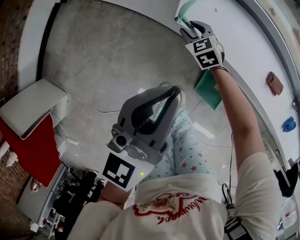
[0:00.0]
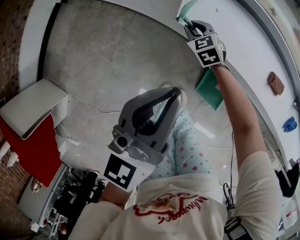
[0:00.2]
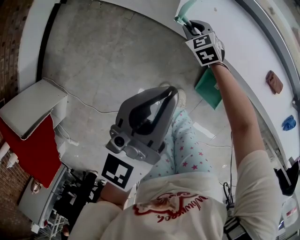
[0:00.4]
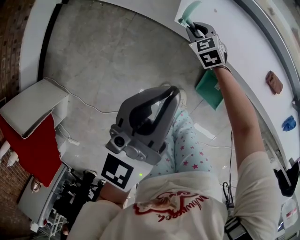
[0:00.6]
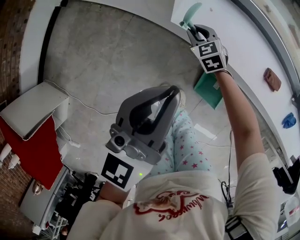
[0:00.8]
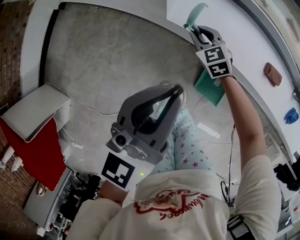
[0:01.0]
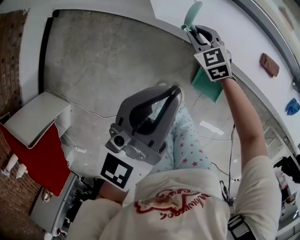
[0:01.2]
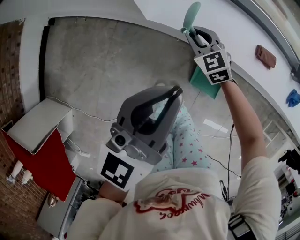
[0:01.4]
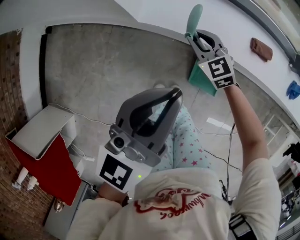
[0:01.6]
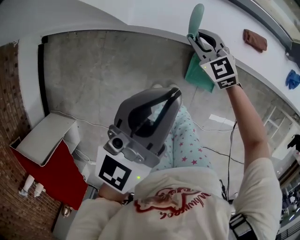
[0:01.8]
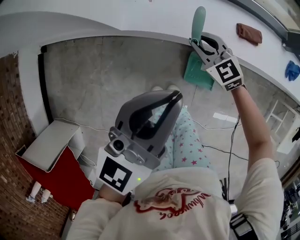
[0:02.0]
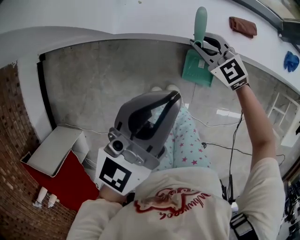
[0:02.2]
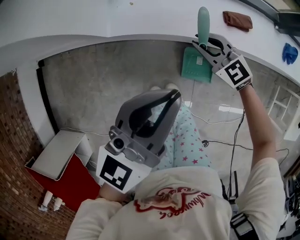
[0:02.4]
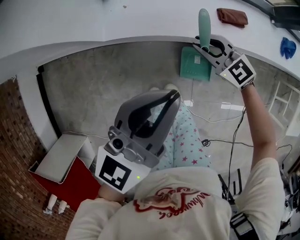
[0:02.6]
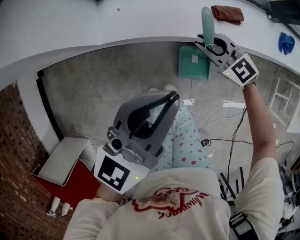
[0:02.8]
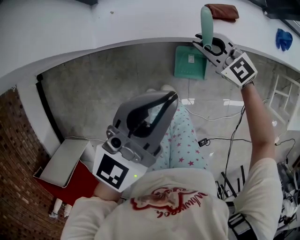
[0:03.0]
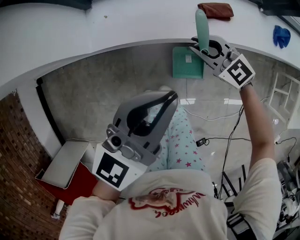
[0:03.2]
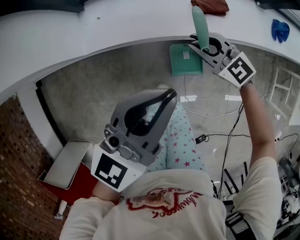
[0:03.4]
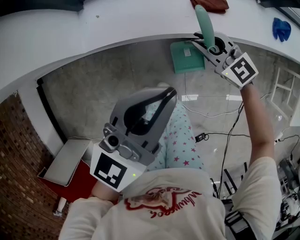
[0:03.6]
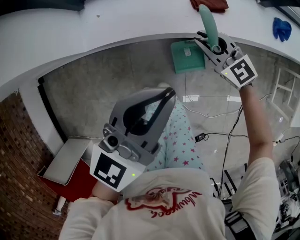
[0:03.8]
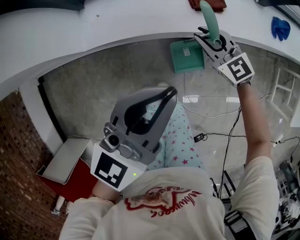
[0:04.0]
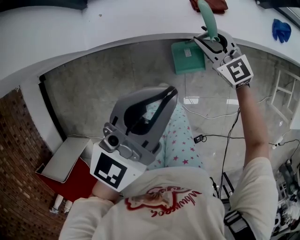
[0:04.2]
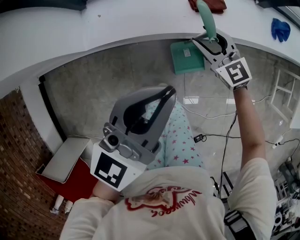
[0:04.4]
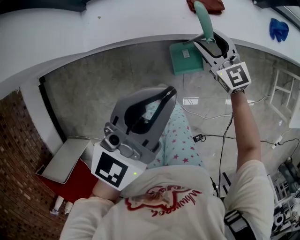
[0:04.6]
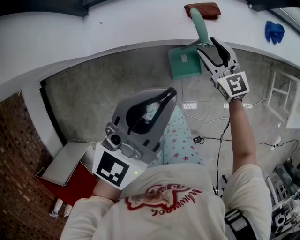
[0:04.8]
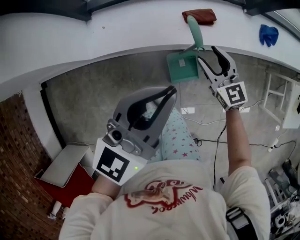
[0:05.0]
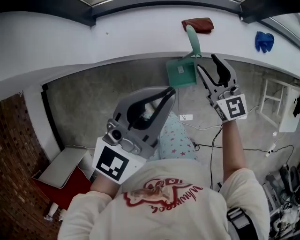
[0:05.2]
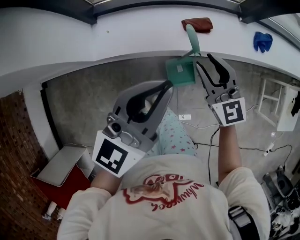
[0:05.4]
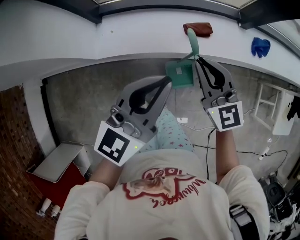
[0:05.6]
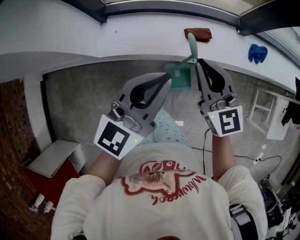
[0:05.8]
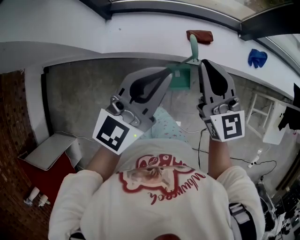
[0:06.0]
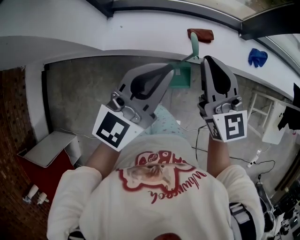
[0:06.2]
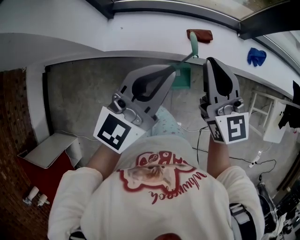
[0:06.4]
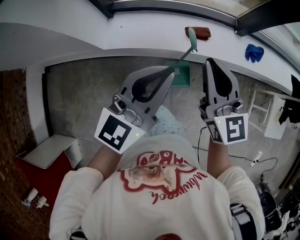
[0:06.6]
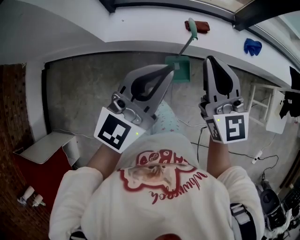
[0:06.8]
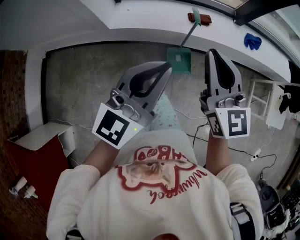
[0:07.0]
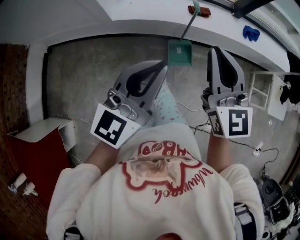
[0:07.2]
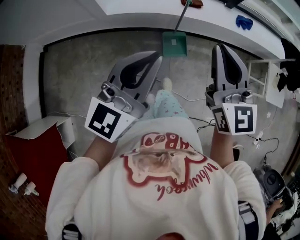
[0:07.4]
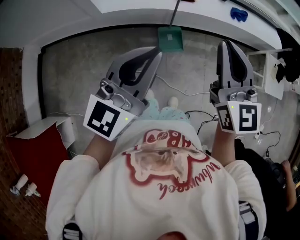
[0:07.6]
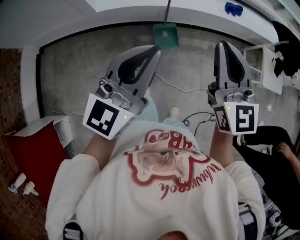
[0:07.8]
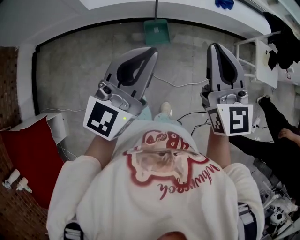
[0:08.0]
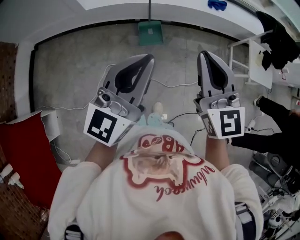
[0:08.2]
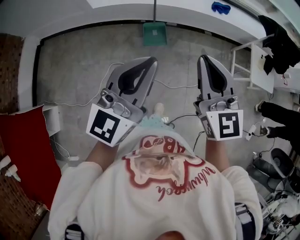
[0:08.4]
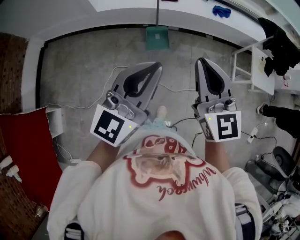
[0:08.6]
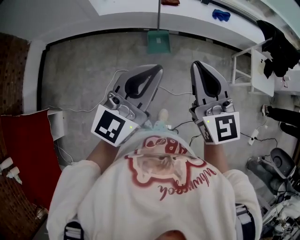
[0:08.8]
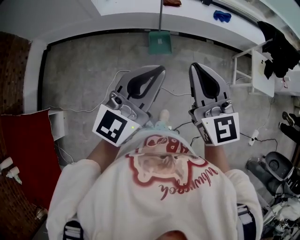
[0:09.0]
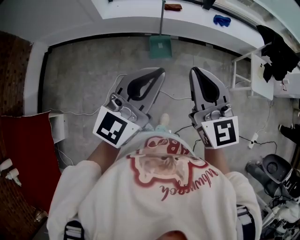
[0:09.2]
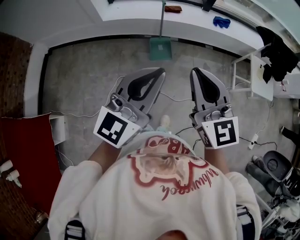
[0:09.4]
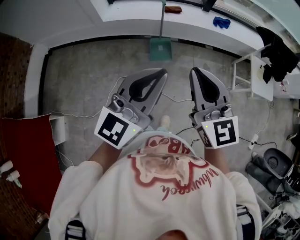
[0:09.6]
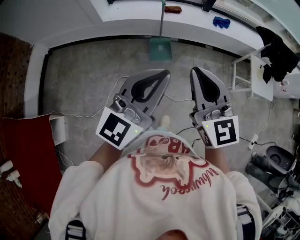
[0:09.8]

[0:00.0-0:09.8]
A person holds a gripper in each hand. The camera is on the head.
0:00.0 to 0:01.4: The right gripper travels to the right, upward and backward by some 15 cm, and closes; the left gripper moves to the right, some 10 cm.
0:01.4 to 0:02.8: Both grippers travel together to the right, some 20 cm. The left gripper turns by approximately 30 degrees.
0:02.8 to 0:04.2: Both grippers move to the right, some 10 cm.
0:04.2 to 0:05.6: The left gripper is displaced upward by some 10 cm. The right gripper travels upward by roughly 25 cm, rotates roughly 20 degrees, and closes up.
0:05.6 to 0:07.0: The right gripper moves backward and upward, some 25 cm. Meanwhile the left gripper heads backward, covering some 20 cm.
0:07.0 to 0:08.4: The two grippers go about 40 cm backward and to the right.
0:08.4 to 0:09.8: The right gripper moves to the left, some 10 cm, while the left gripper changes place by approximately 5 cm.

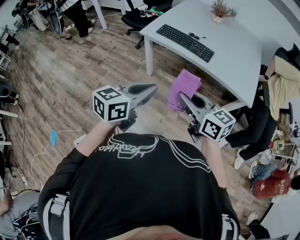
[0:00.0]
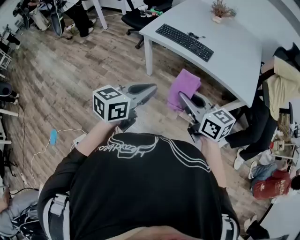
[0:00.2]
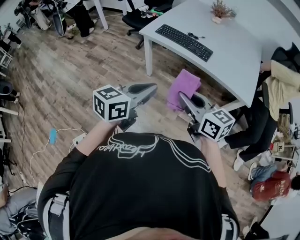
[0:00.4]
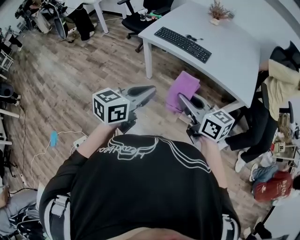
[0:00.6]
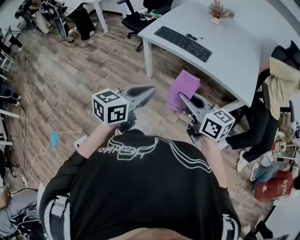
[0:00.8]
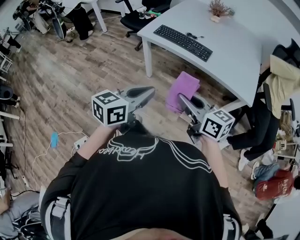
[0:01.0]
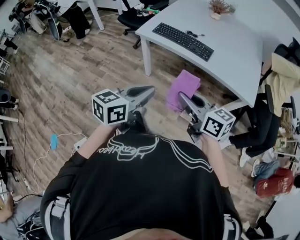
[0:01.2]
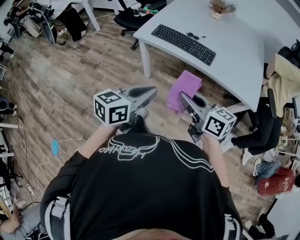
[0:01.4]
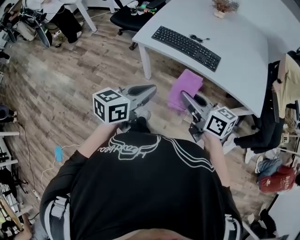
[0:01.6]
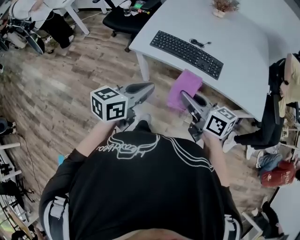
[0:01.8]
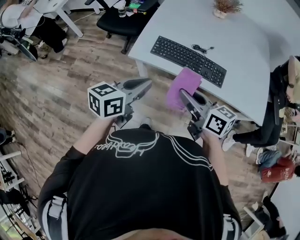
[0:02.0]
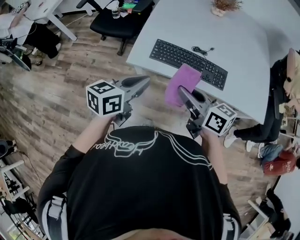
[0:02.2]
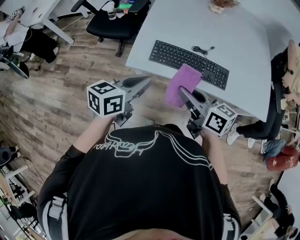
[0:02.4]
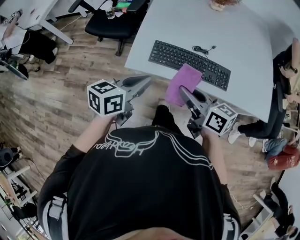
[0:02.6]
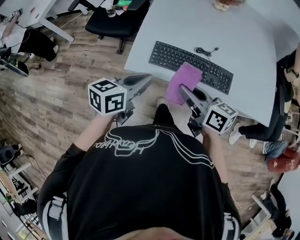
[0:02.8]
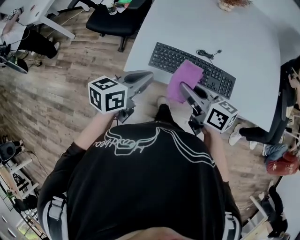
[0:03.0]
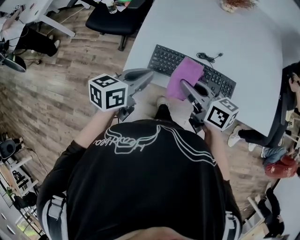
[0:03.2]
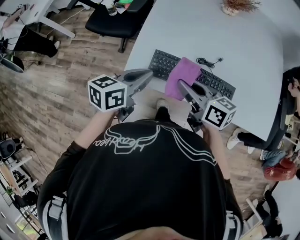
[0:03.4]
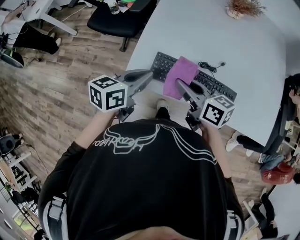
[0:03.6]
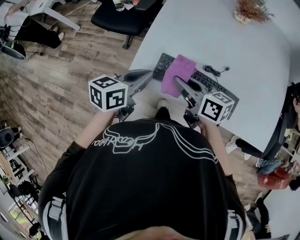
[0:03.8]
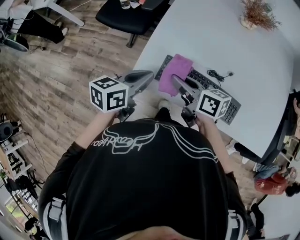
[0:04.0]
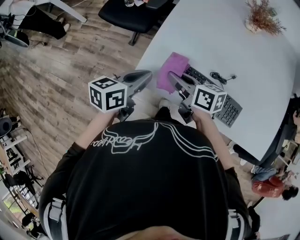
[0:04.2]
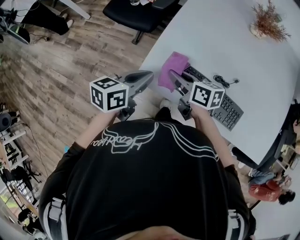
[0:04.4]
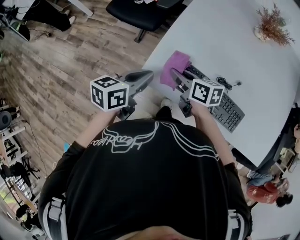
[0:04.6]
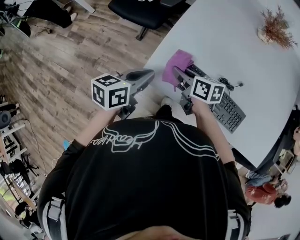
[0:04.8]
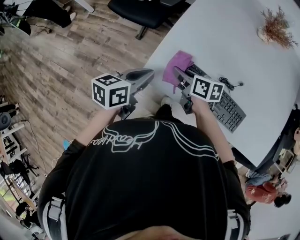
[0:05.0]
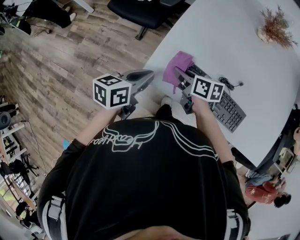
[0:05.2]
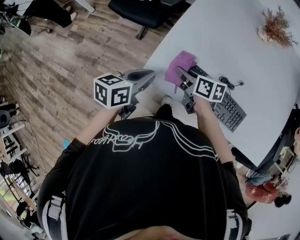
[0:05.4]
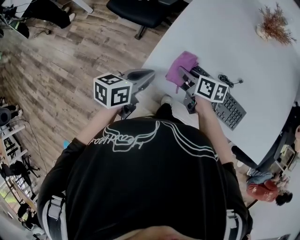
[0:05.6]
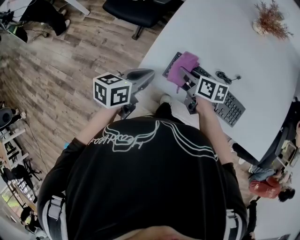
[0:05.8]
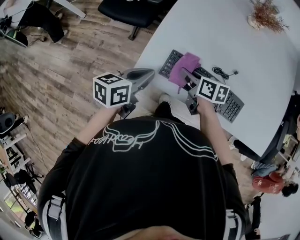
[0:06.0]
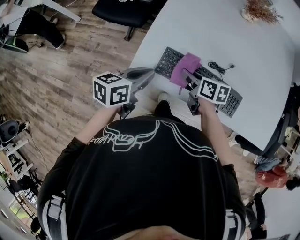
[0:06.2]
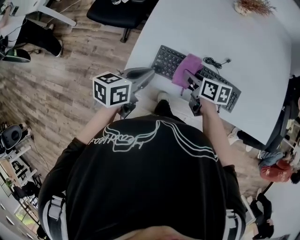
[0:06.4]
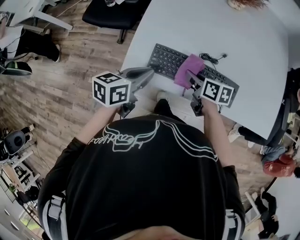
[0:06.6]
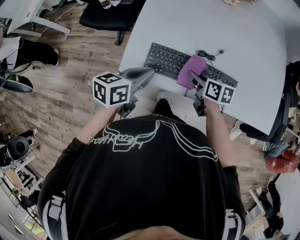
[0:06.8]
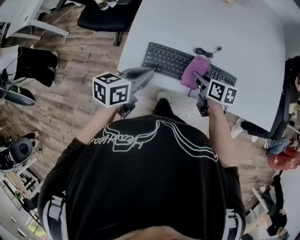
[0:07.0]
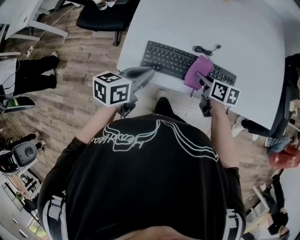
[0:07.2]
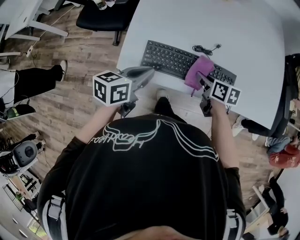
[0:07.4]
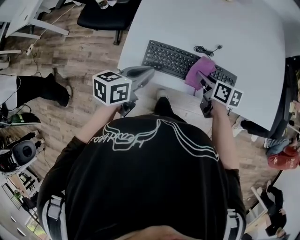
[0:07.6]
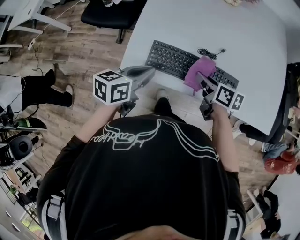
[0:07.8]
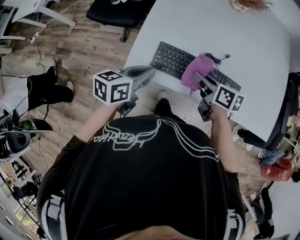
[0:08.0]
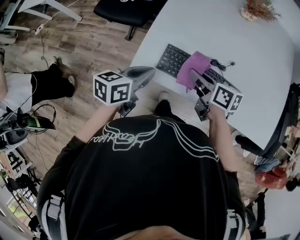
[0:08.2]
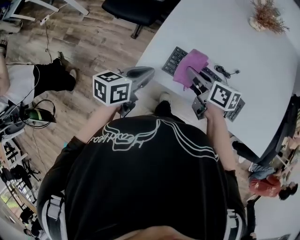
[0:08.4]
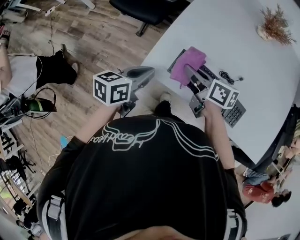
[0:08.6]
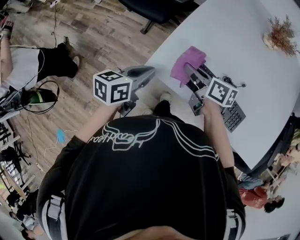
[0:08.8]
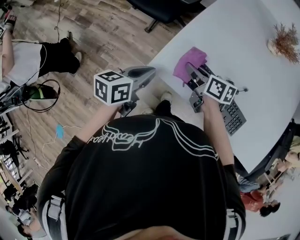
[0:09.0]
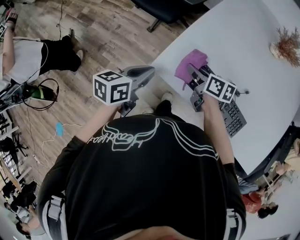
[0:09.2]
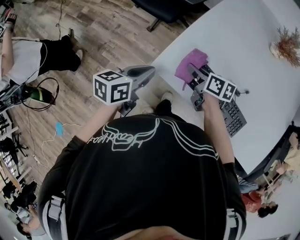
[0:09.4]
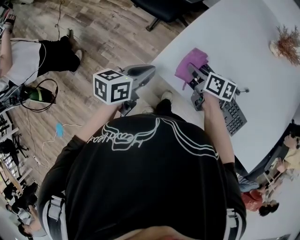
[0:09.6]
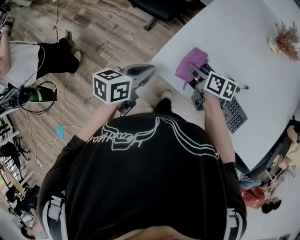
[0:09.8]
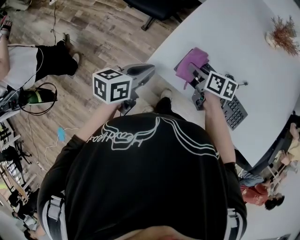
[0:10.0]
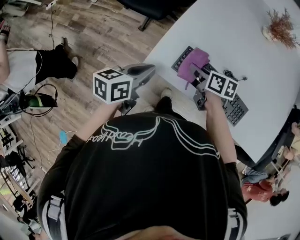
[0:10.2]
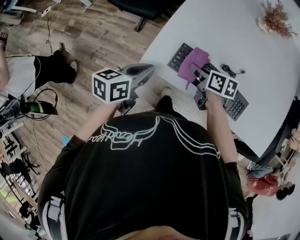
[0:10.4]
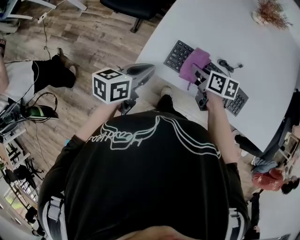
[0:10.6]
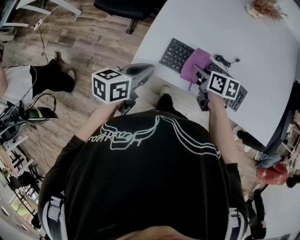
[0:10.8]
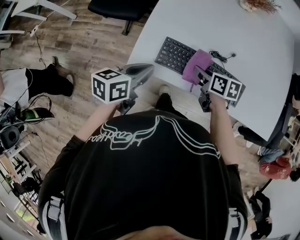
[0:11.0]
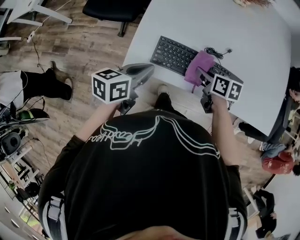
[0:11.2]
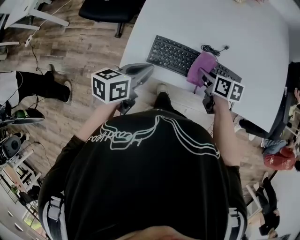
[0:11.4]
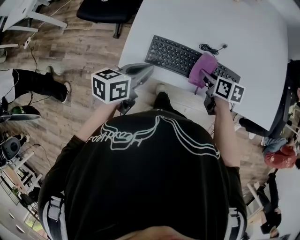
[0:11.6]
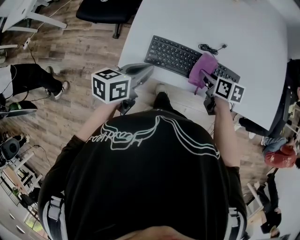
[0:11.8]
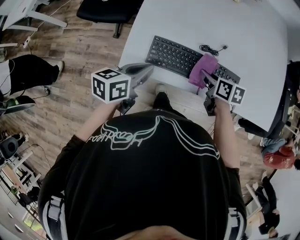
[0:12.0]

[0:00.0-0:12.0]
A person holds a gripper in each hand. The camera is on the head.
0:00.0 to 0:01.6: The grippers both shift forward by approximately 15 cm.
0:01.6 to 0:03.0: The grippers both shift forward by roughly 30 cm.
0:03.0 to 0:04.4: The right gripper shifts about 20 cm forward, to the left and downward; the left gripper heads forward, covering roughly 10 cm.
0:04.4 to 0:06.0: The right gripper shifts about 10 cm to the right and downward.
0:06.0 to 0:07.6: The right gripper goes some 15 cm to the right. The left gripper is displaced to the right by about 5 cm.
0:07.6 to 0:09.0: The right gripper travels to the left and forward by approximately 20 cm, and rotates some 30 degrees; the left gripper is displaced to the left by about 10 cm, and changes its angle by about 20 degrees.
0:09.0 to 0:10.4: The right gripper goes roughly 5 cm to the right.
0:10.4 to 0:12.0: The right gripper goes approximately 15 cm to the right. Meanwhile the left gripper travels to the right by some 10 cm.

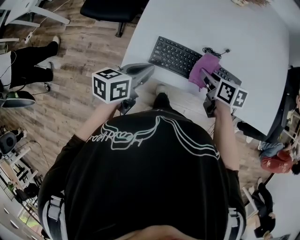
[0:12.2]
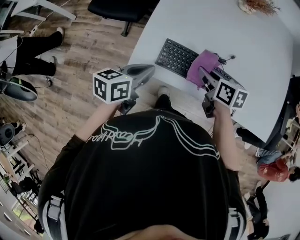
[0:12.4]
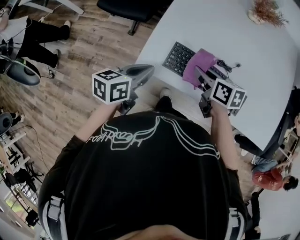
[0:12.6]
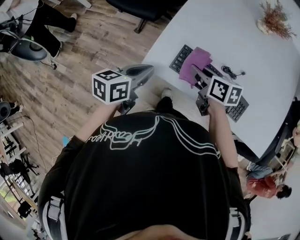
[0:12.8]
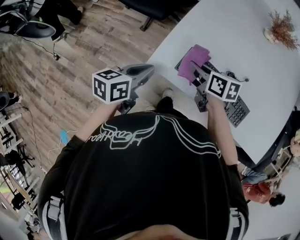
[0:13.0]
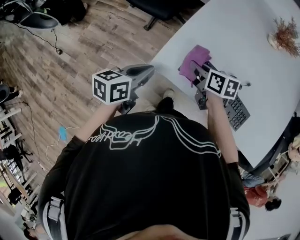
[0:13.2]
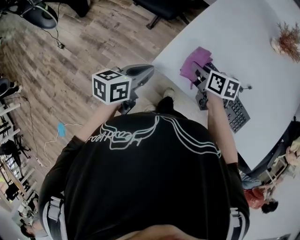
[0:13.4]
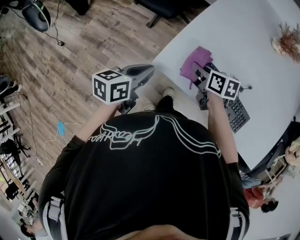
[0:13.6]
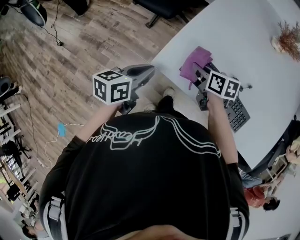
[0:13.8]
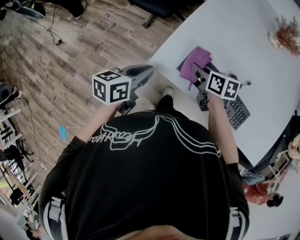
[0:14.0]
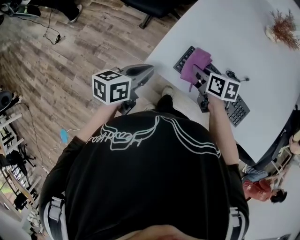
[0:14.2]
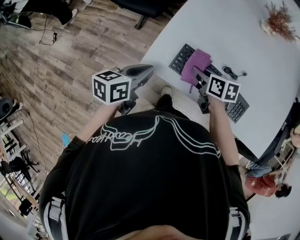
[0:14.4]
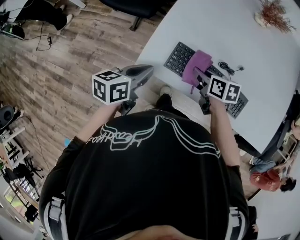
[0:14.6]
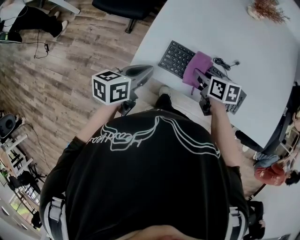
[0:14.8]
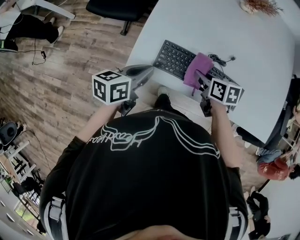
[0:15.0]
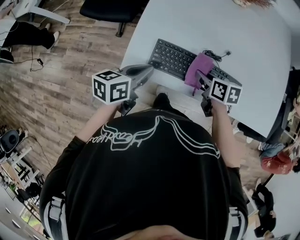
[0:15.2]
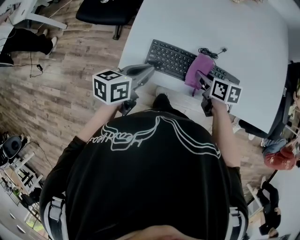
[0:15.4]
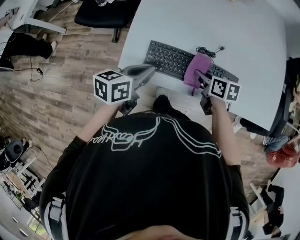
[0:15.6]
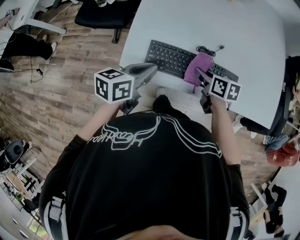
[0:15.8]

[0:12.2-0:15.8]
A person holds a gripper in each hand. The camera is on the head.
0:12.2 to 0:14.0: The left gripper shifts about 10 cm to the left. Meanwhile the right gripper heads to the left and forward, covering about 20 cm.
0:14.0 to 0:15.8: Both grippers travel together to the right, roughly 15 cm. The right gripper changes its angle by some 20 degrees. The left gripper turns by about 20 degrees.
